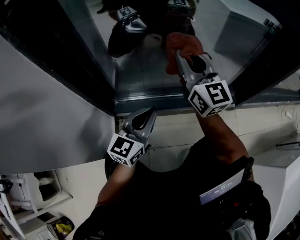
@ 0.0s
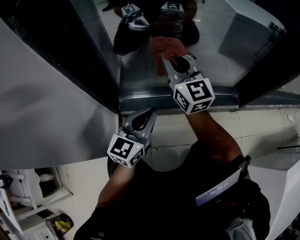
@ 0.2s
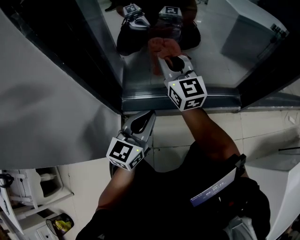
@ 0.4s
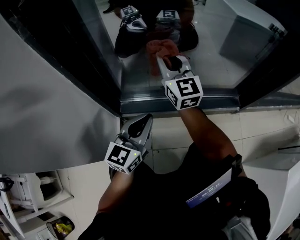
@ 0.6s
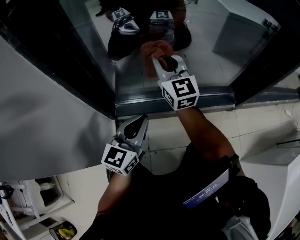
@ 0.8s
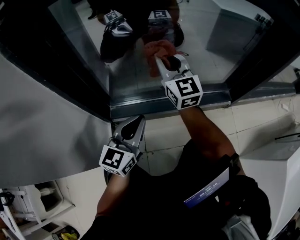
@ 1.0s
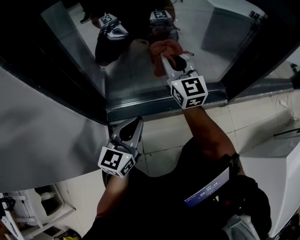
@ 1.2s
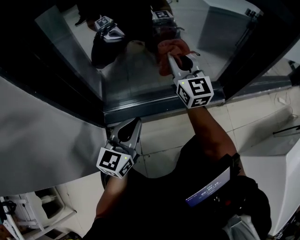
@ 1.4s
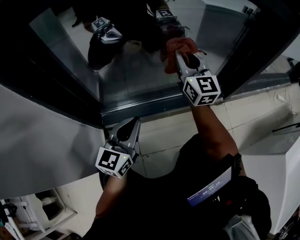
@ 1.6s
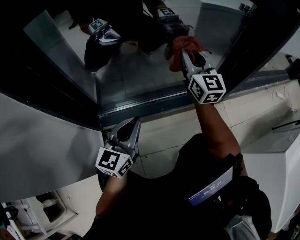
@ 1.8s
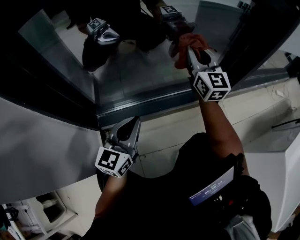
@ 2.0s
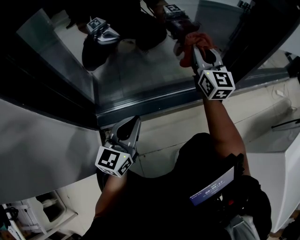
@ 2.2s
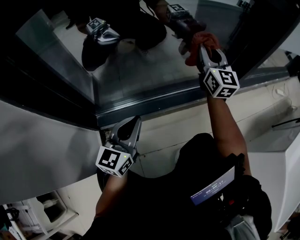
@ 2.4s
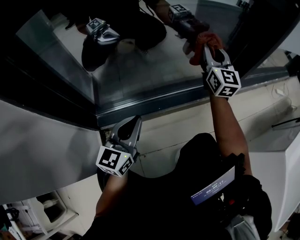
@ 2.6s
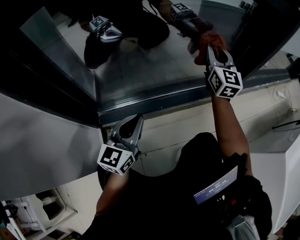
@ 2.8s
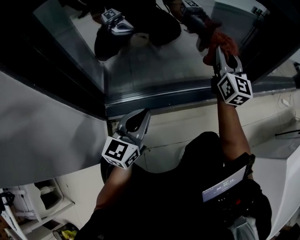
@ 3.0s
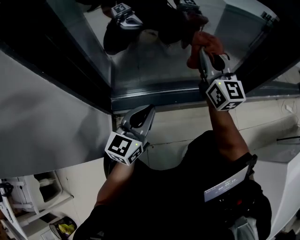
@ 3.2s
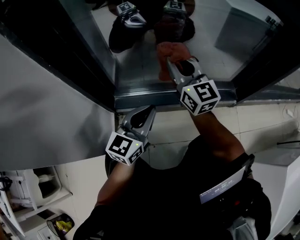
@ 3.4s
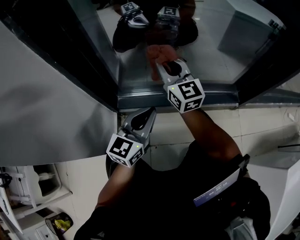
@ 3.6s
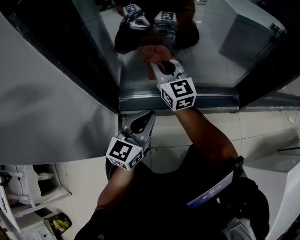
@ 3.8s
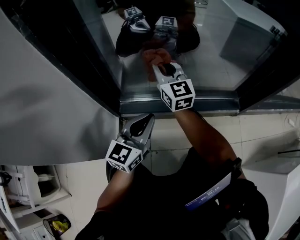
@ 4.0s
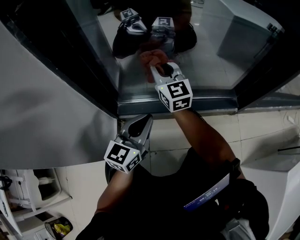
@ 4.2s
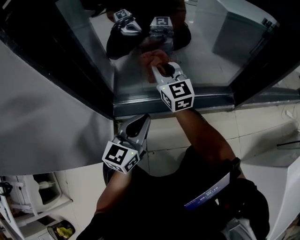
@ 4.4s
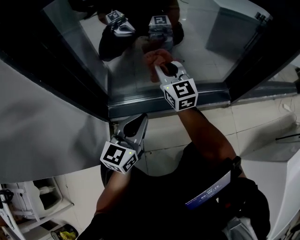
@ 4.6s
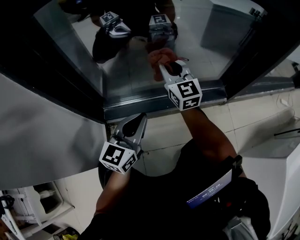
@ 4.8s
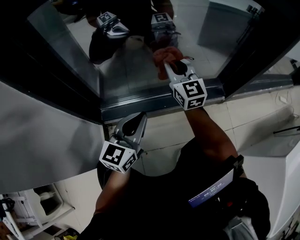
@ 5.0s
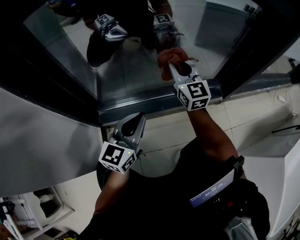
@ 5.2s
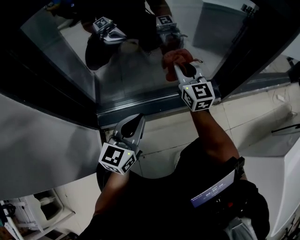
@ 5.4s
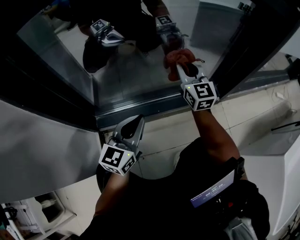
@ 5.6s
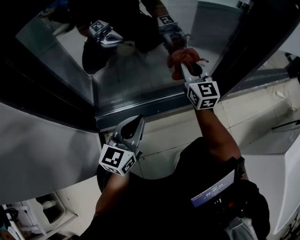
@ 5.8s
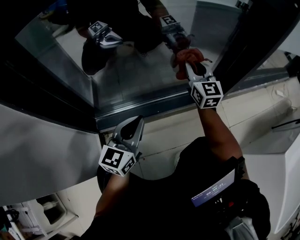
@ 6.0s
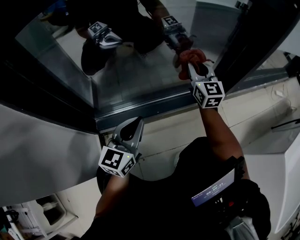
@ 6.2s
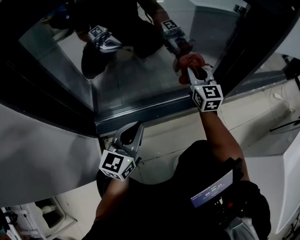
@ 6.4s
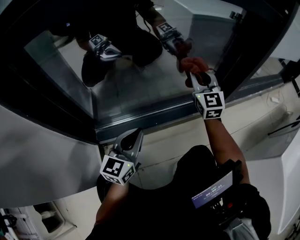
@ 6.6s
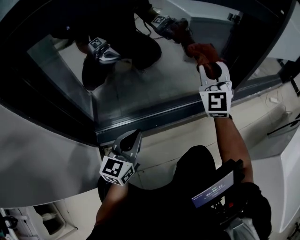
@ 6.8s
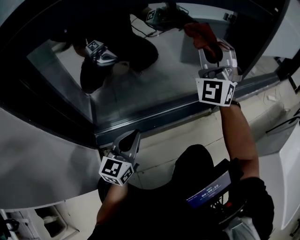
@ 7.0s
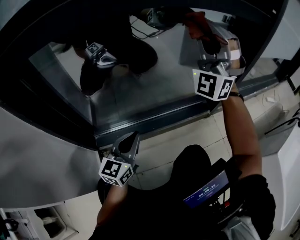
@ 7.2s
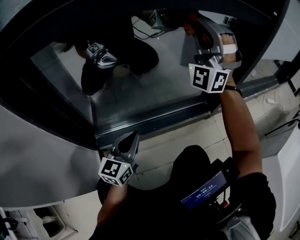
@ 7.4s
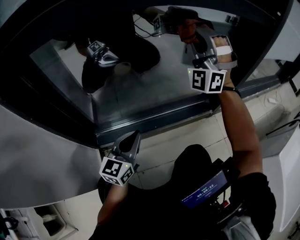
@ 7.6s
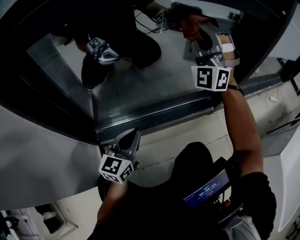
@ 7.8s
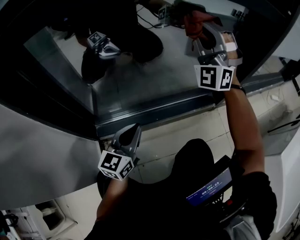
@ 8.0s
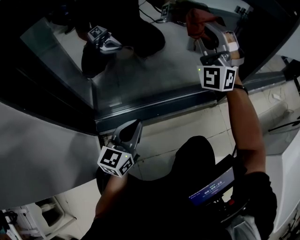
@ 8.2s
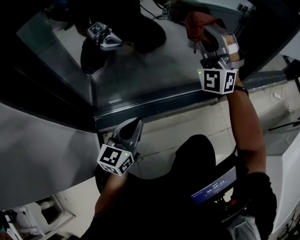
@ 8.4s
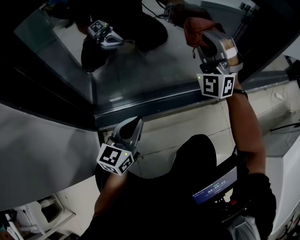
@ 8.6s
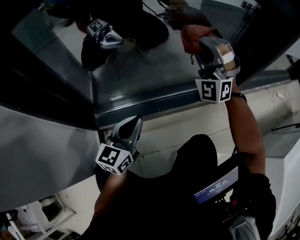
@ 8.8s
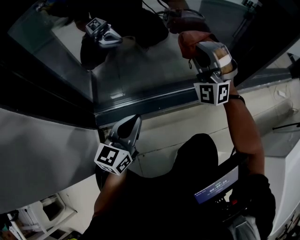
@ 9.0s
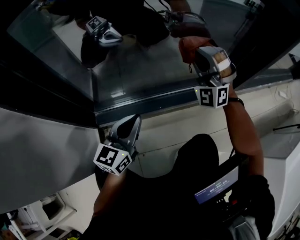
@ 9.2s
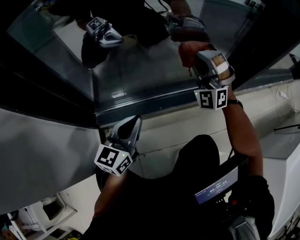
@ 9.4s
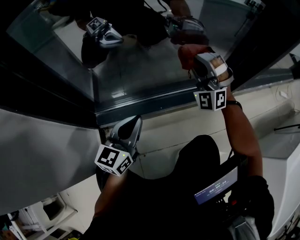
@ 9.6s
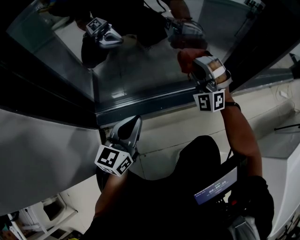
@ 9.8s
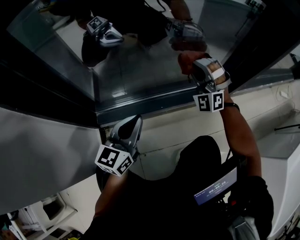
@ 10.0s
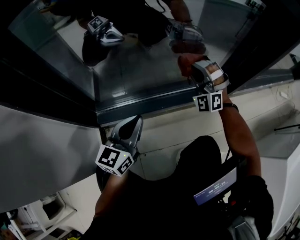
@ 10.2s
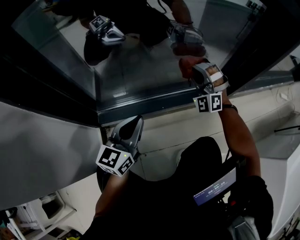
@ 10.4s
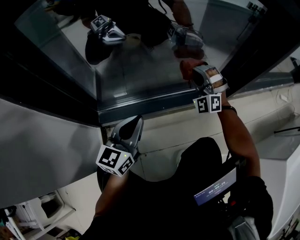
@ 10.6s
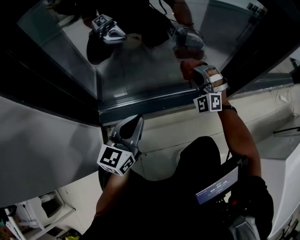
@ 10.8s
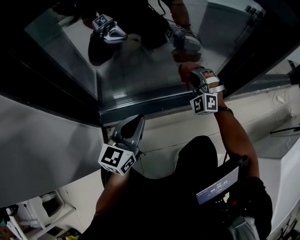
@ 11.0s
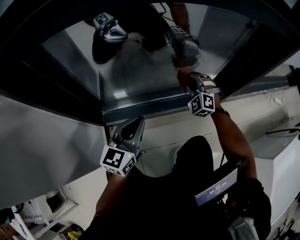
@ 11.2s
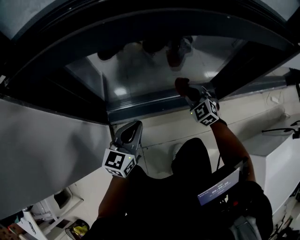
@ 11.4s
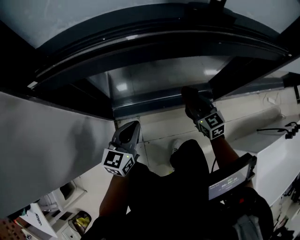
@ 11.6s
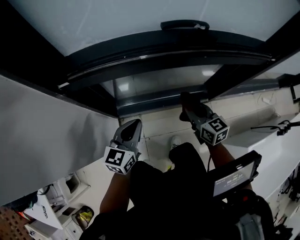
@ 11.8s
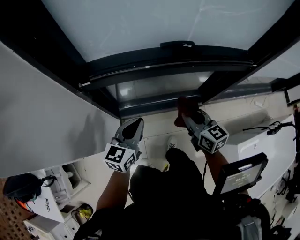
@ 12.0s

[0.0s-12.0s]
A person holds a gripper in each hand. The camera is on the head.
0.0s to 1.6s: The right gripper moves to the right and forward, roughly 10 cm.
1.6s to 3.0s: The right gripper travels to the right by approximately 10 cm.
3.0s to 4.4s: The right gripper is displaced to the left by about 30 cm, and turns by some 30 degrees.
4.4s to 6.0s: The right gripper goes approximately 25 cm to the right, and turns by approximately 20 degrees; the left gripper goes some 5 cm to the right.
6.0s to 7.6s: The right gripper goes some 25 cm upward, and rotates around the line of its fingers by some 80 degrees, counterclockwise from behind.
7.6s to 9.0s: The right gripper is displaced downward by approximately 15 cm, and turns by roughly 20 degrees.
9.0s to 10.4s: The right gripper goes about 15 cm downward.
10.4s to 12.0s: The right gripper heads upward and backward, covering approximately 50 cm, and twists some 90 degrees clockwise, seen from behind. The left gripper travels upward by roughly 40 cm.

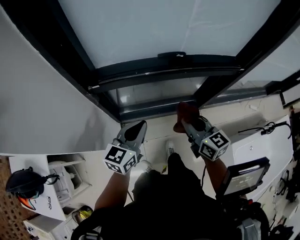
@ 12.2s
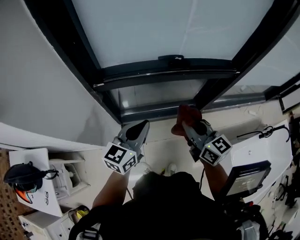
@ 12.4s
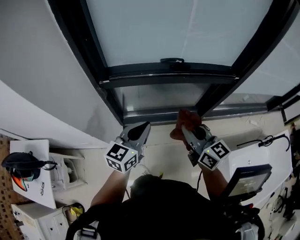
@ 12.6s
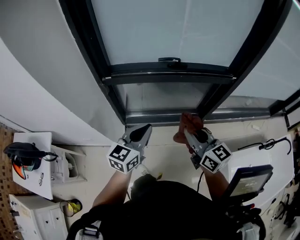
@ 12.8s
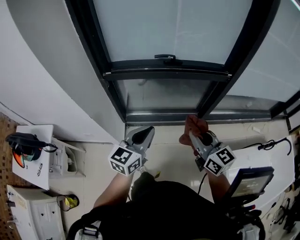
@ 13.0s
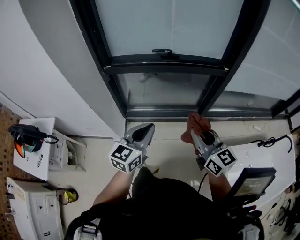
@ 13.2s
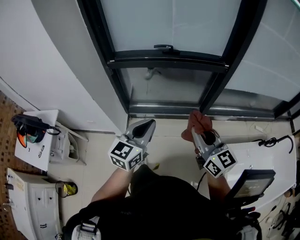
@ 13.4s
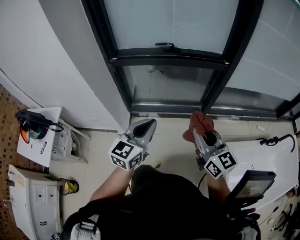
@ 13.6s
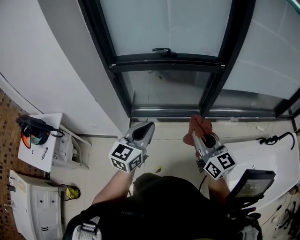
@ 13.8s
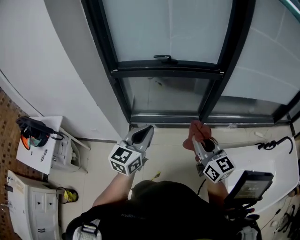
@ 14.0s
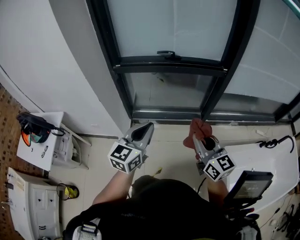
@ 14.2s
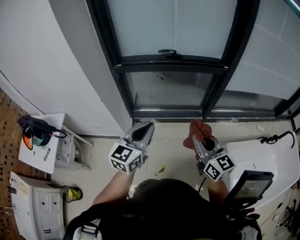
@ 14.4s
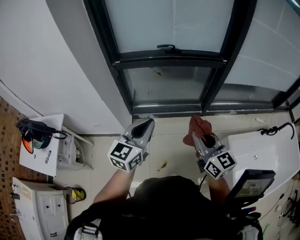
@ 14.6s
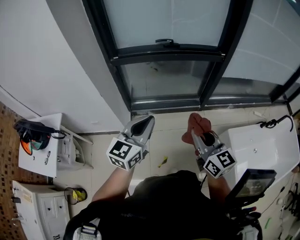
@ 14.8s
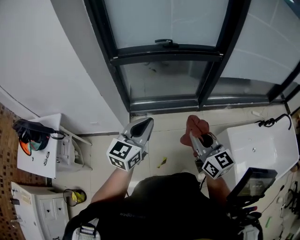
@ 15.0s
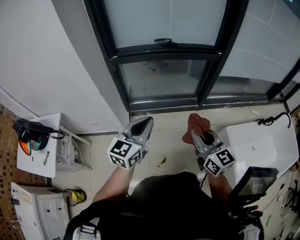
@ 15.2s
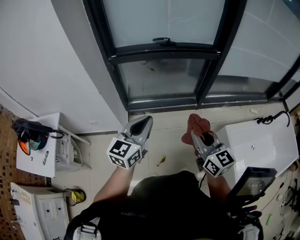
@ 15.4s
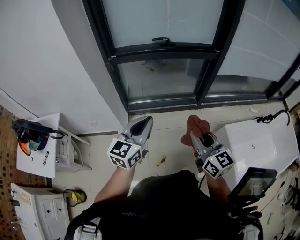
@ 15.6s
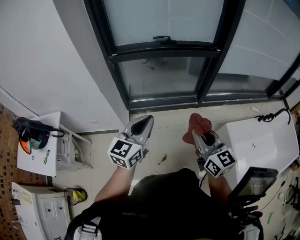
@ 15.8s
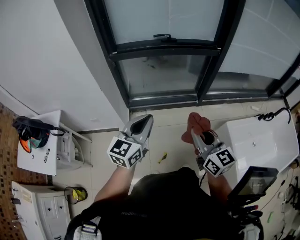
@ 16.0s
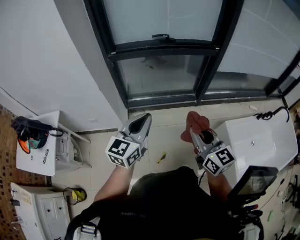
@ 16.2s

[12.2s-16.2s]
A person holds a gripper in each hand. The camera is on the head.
12.2s to 13.6s: Both grippers move backward and to the right, roughly 35 cm.
13.6s to 14.8s: The right gripper moves to the left and backward, some 10 cm. The left gripper travels to the left by approximately 10 cm.
14.8s to 16.2s: There are only small adjustments of the grippers.

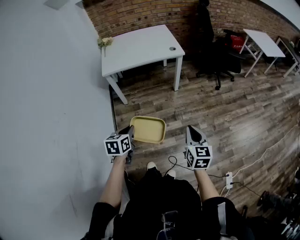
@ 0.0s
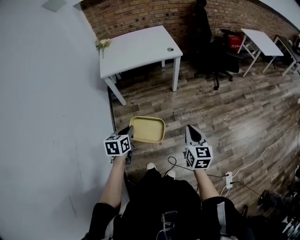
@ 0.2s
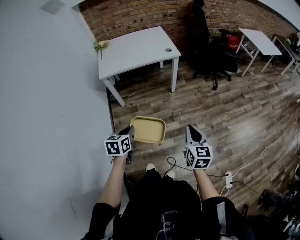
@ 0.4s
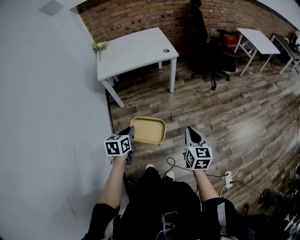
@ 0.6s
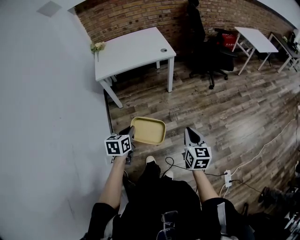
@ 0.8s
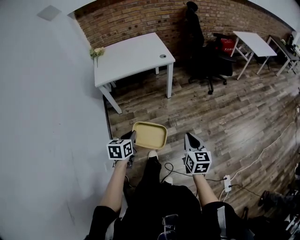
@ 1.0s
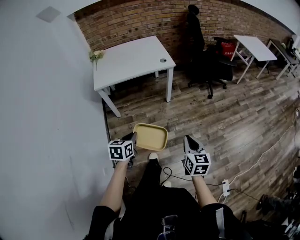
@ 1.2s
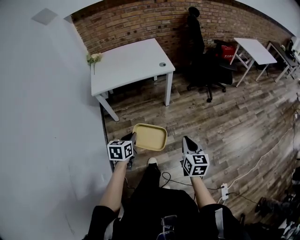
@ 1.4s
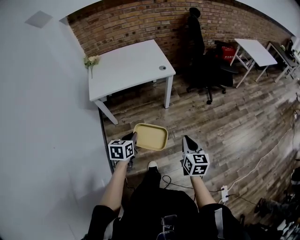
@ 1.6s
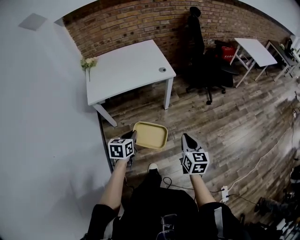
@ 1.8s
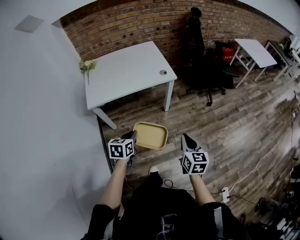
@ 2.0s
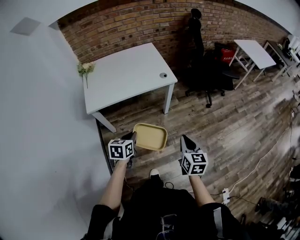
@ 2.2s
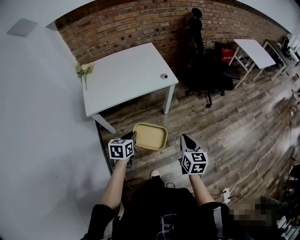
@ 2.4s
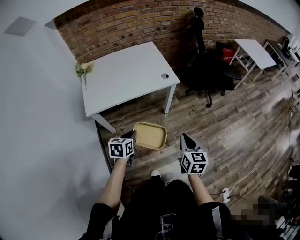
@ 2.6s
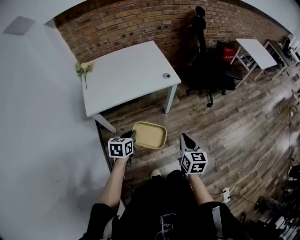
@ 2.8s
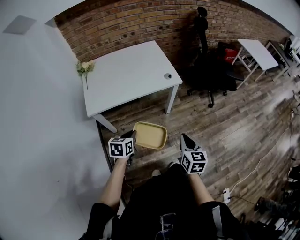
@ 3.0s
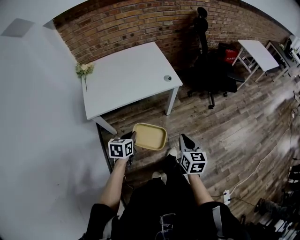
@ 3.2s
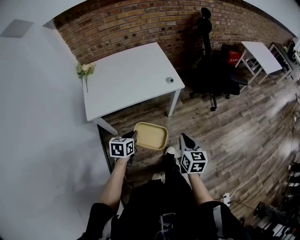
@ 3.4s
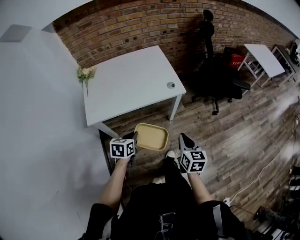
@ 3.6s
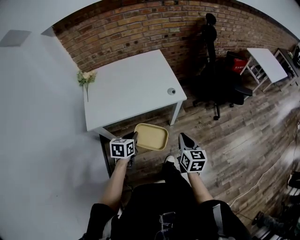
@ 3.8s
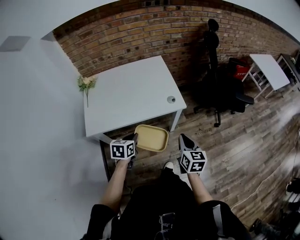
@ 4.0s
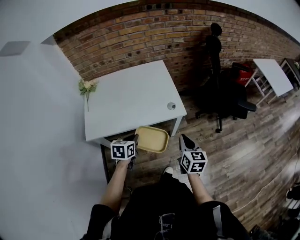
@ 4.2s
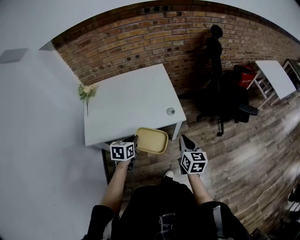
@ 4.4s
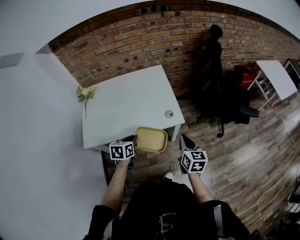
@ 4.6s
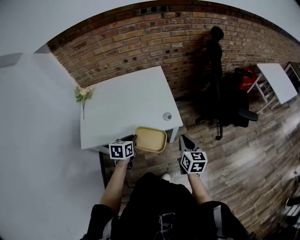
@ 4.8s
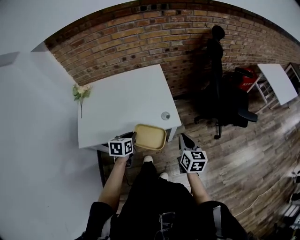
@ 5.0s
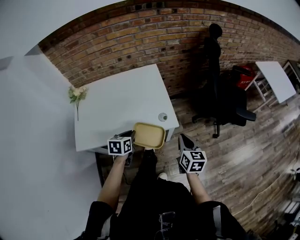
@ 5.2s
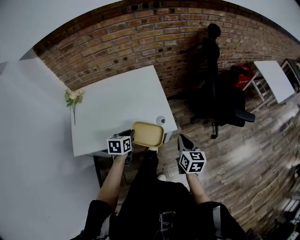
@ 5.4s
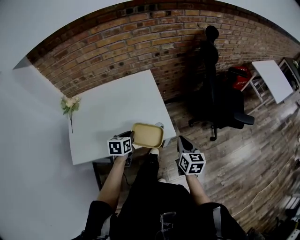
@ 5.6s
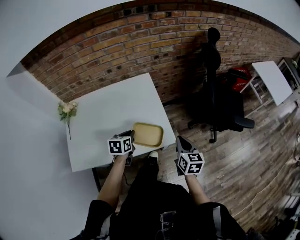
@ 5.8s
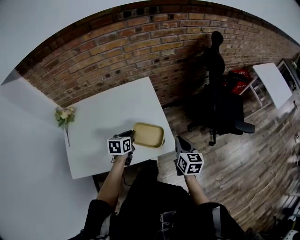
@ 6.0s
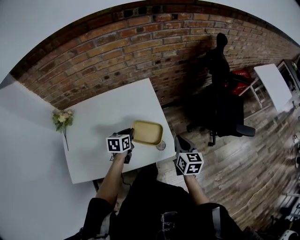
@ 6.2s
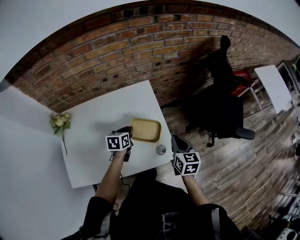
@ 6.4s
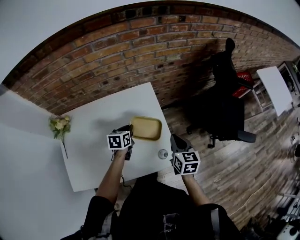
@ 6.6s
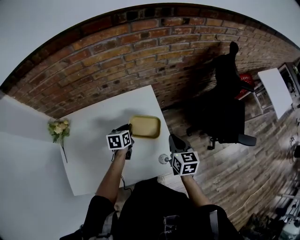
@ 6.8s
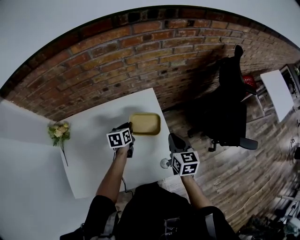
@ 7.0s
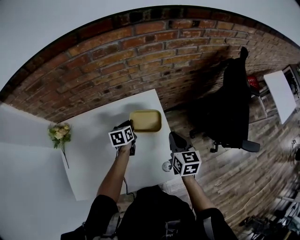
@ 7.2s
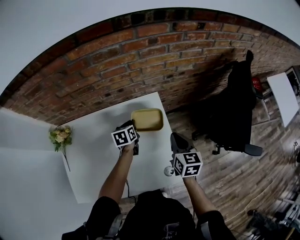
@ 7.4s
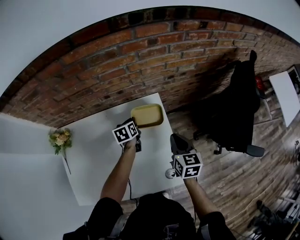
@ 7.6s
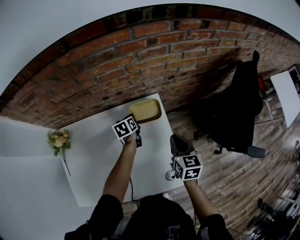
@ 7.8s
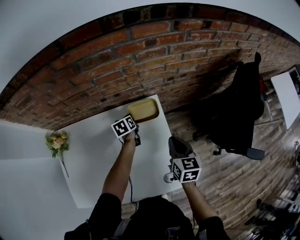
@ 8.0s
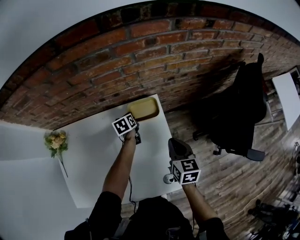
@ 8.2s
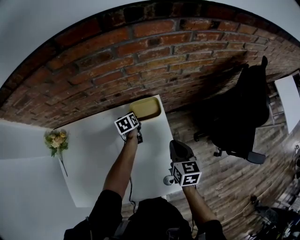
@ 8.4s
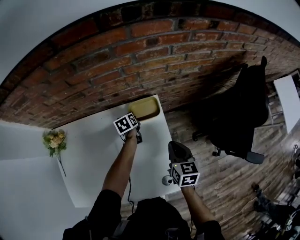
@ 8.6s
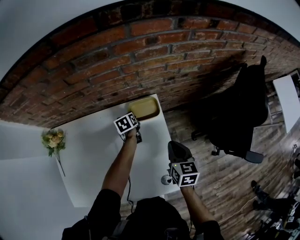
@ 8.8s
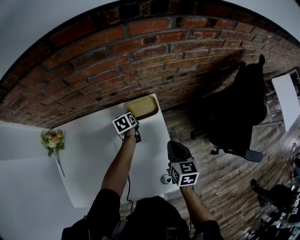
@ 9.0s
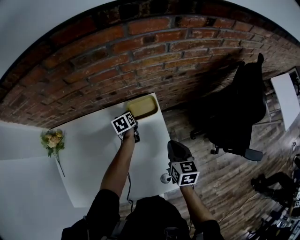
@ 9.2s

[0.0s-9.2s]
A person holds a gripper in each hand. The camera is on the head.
0.0s to 1.6s: The grippers both shift forward by some 15 cm.
1.6s to 3.0s: Both grippers travel together forward and to the left, about 20 cm.
3.0s to 4.6s: Both grippers travel together forward, roughly 30 cm.
4.6s to 6.2s: The two grippers go some 30 cm forward.
6.2s to 7.6s: The left gripper shifts roughly 25 cm forward, and swivels approximately 20 degrees. Meanwhile the right gripper goes about 25 cm forward and to the left.
7.6s to 9.2s: The left gripper shifts approximately 10 cm downward and forward.
